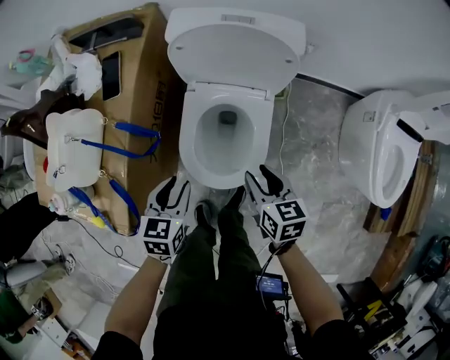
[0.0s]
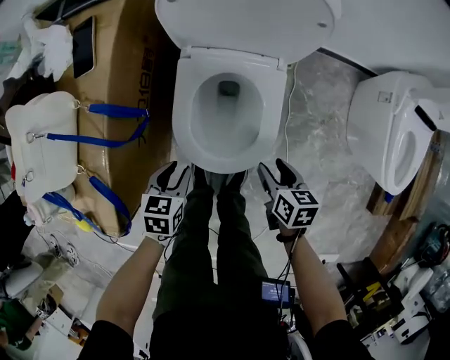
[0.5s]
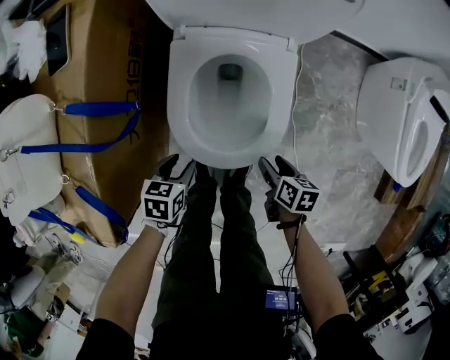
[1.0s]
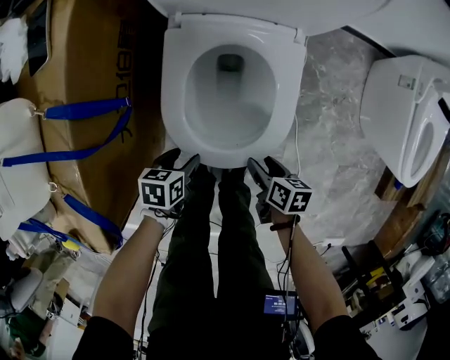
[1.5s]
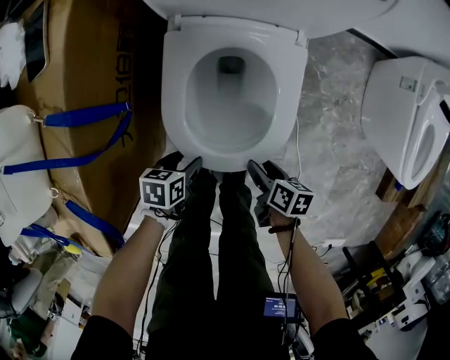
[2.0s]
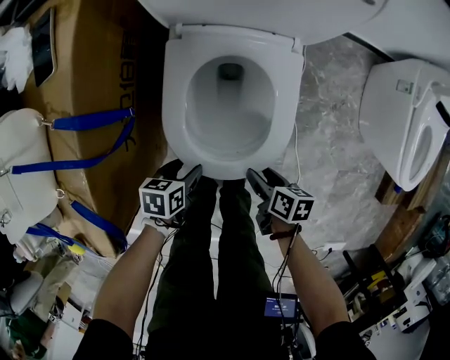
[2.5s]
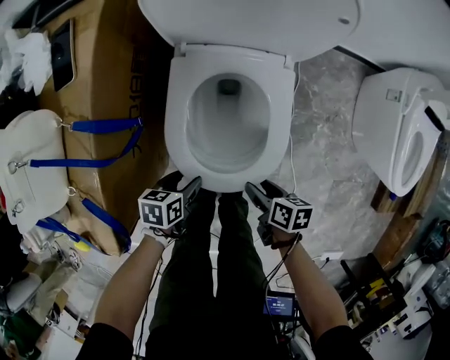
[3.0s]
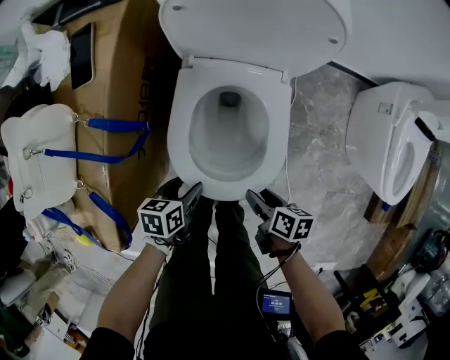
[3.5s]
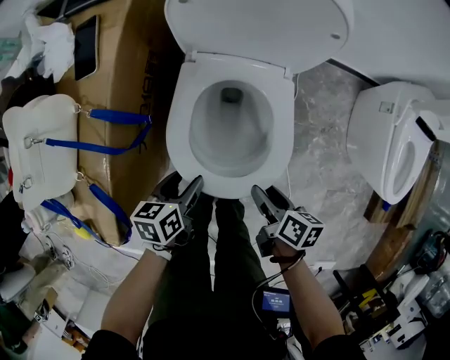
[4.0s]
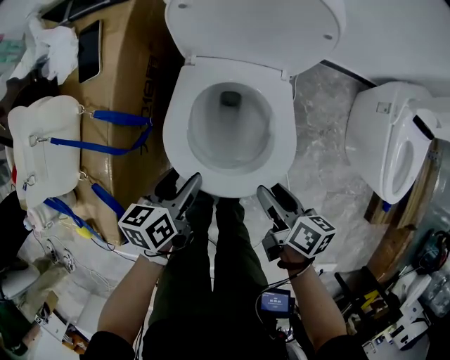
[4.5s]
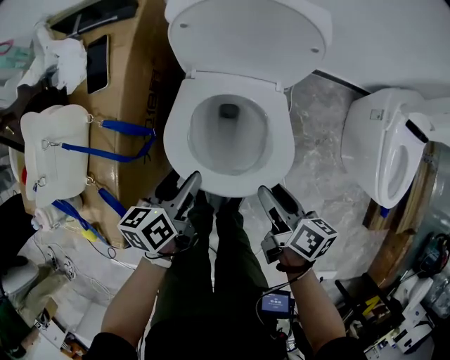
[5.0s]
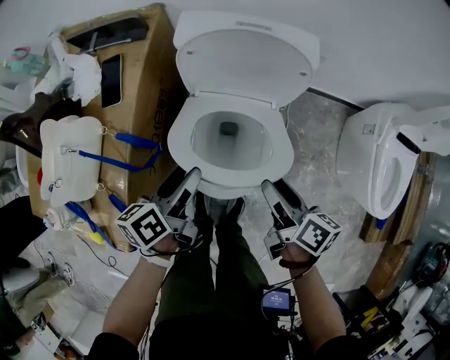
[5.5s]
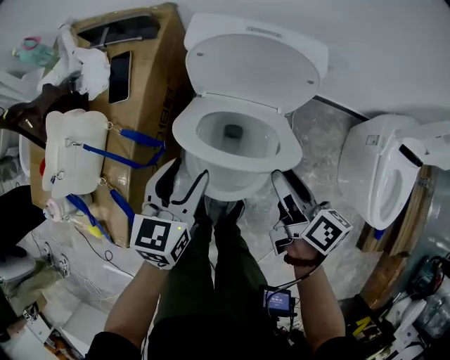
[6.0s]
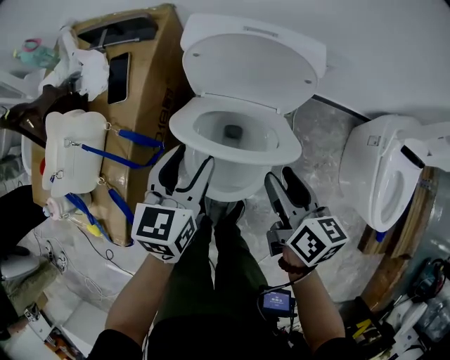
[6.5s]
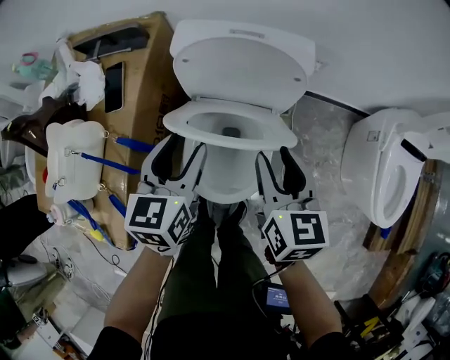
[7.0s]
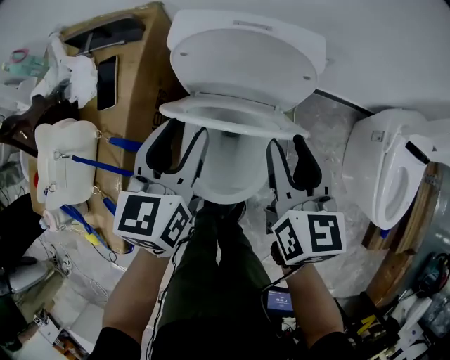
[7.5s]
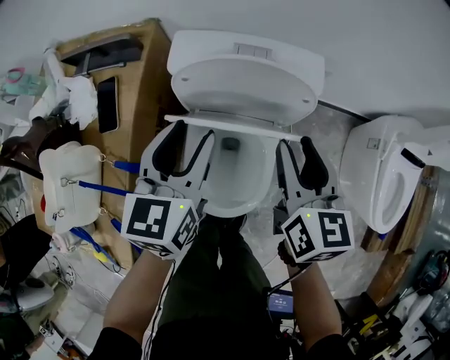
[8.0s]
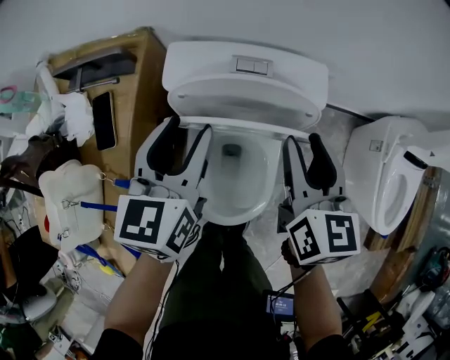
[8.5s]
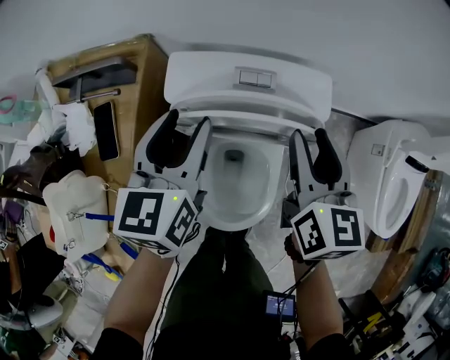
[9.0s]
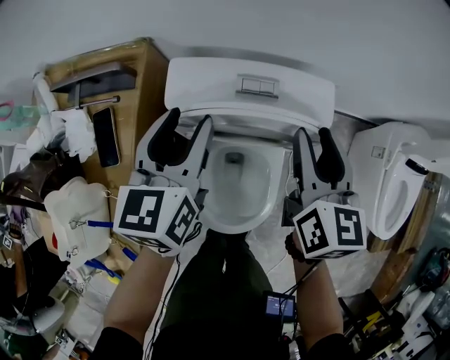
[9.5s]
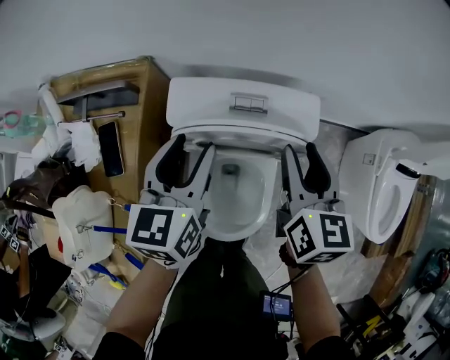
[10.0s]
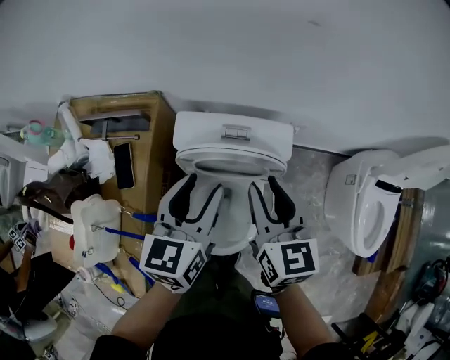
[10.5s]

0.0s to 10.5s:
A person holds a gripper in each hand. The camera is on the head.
0.0s to 2.0s: Both grippers travel together downward, some 30 cm. The left gripper turns by approximately 40 degrees, and opens up. The right gripper swivels some 40 degrees, and opens its fingers.
2.0s to 4.0s: Both grippers travel together upward, about 15 cm. The left gripper turns by roughly 20 degrees.
4.0s to 6.5s: Both grippers move upward and forward, approximately 25 cm. The right gripper swivels roughly 30 degrees, while the left gripper turns by roughly 40 degrees.
6.5s to 8.5s: Both grippers travel together forward, approximately 15 cm. The right gripper swivels about 30 degrees.
8.5s to 10.5s: Both grippers move upward, approximately 10 cm.

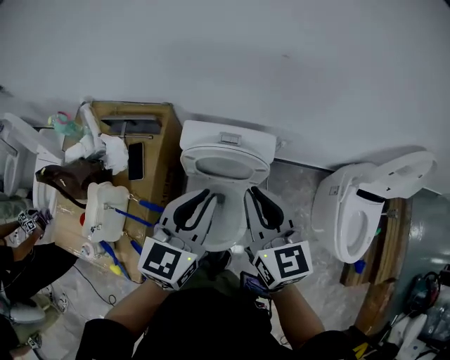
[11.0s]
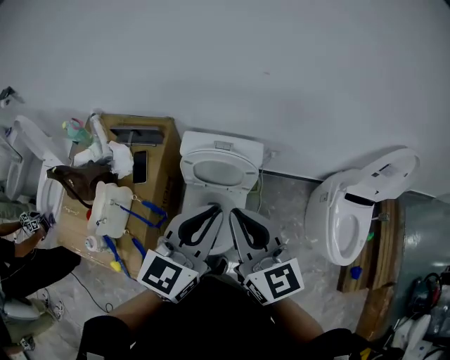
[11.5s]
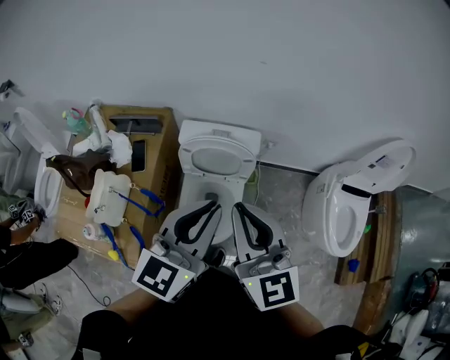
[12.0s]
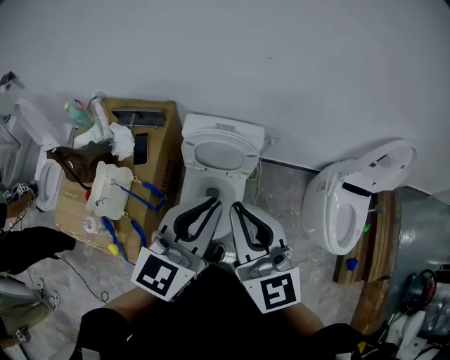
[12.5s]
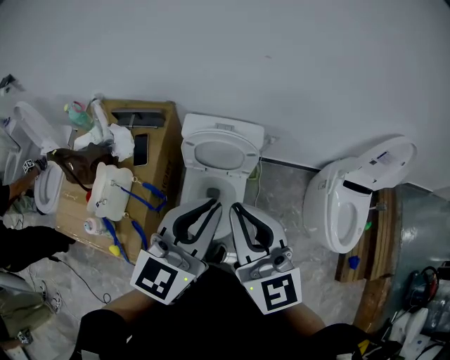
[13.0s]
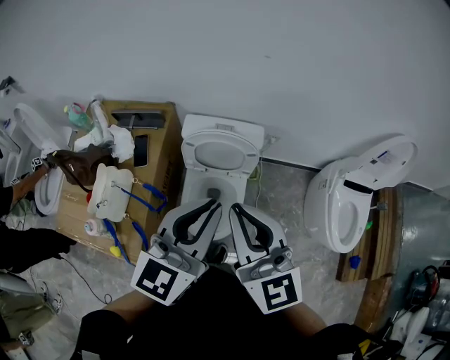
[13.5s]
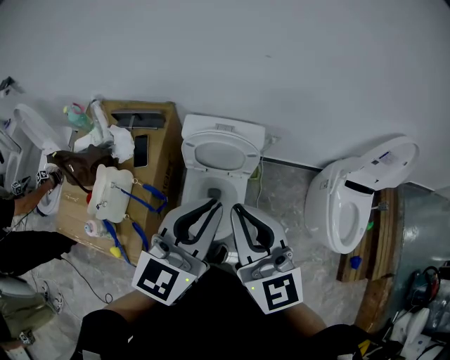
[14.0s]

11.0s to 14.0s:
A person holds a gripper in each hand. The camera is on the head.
11.0s to 12.5s: The two grippers go roughly 20 cm backward and upward.
12.5s to 14.0s: Both grippers stay about where they are.

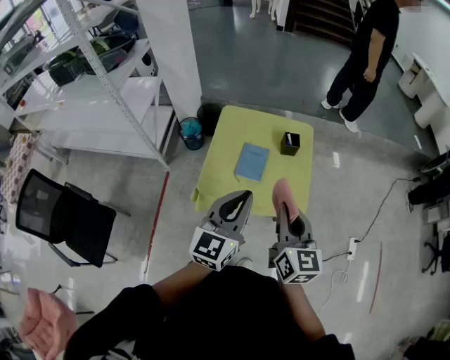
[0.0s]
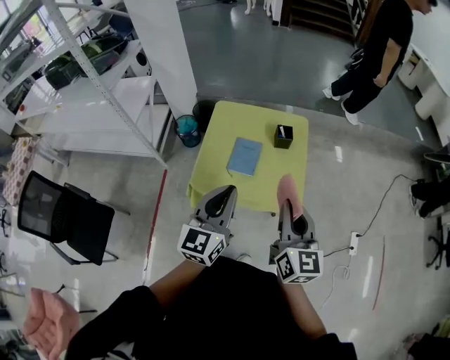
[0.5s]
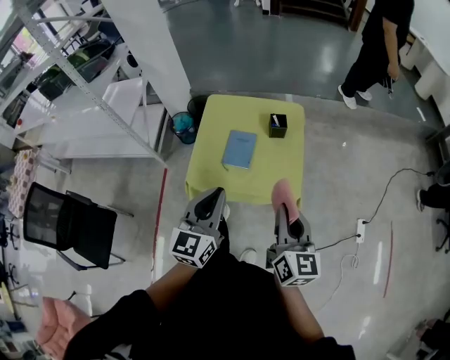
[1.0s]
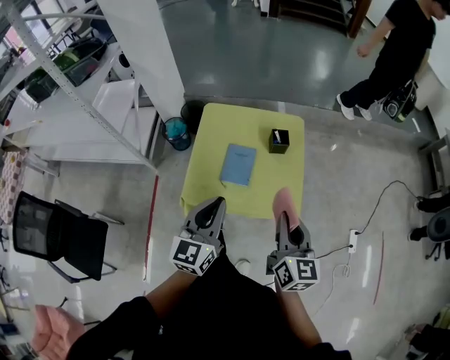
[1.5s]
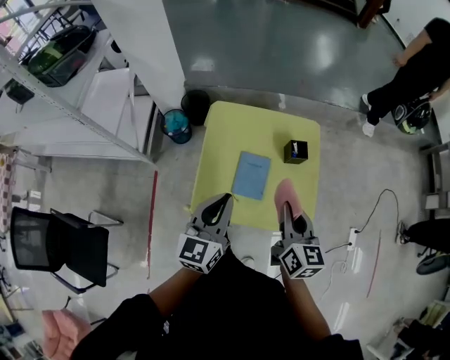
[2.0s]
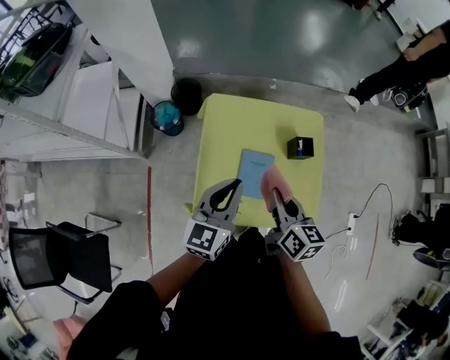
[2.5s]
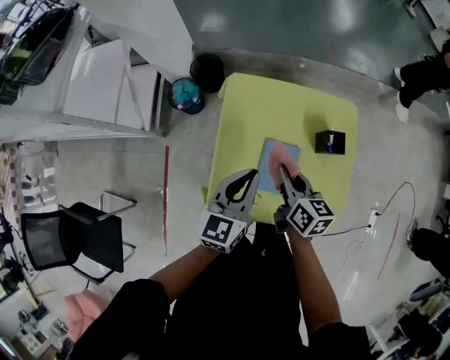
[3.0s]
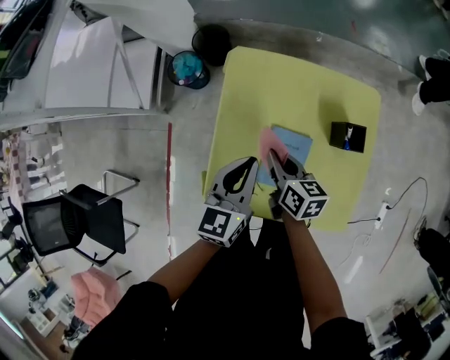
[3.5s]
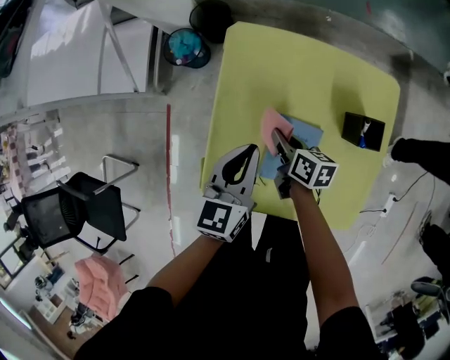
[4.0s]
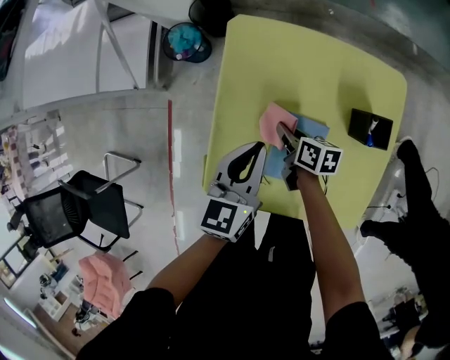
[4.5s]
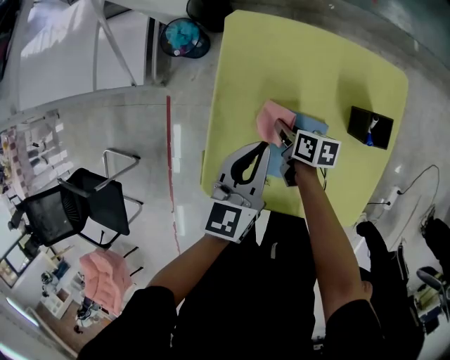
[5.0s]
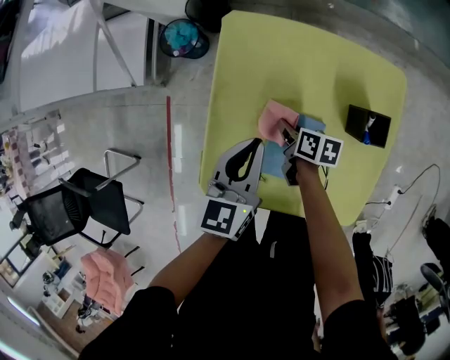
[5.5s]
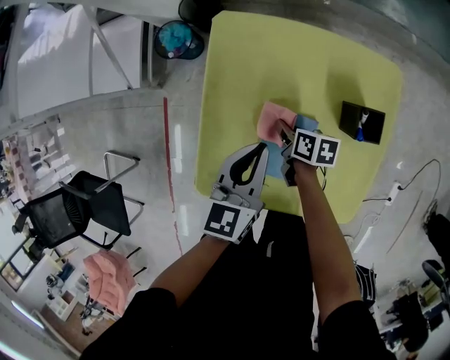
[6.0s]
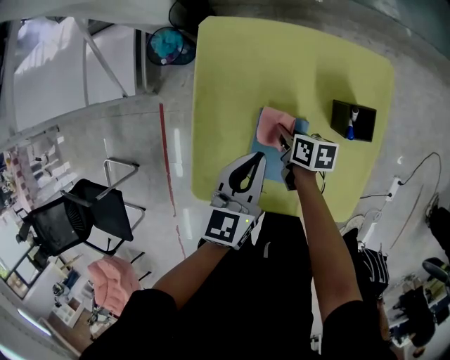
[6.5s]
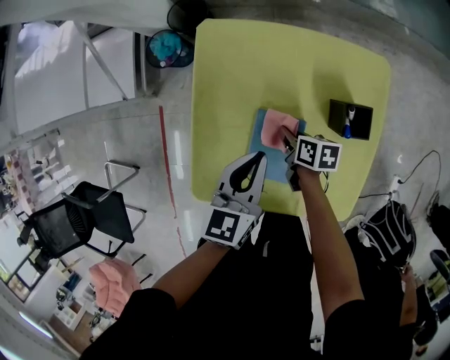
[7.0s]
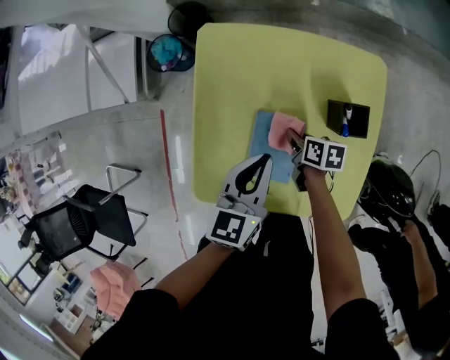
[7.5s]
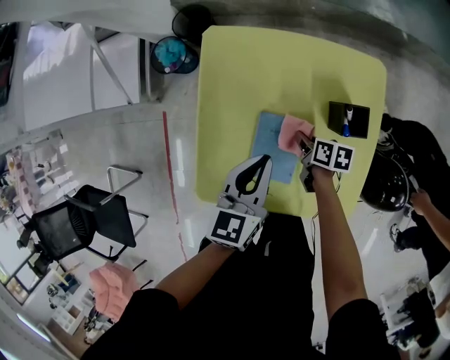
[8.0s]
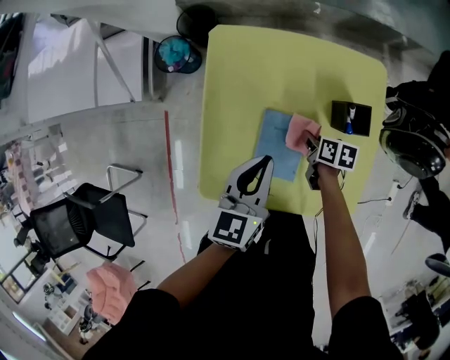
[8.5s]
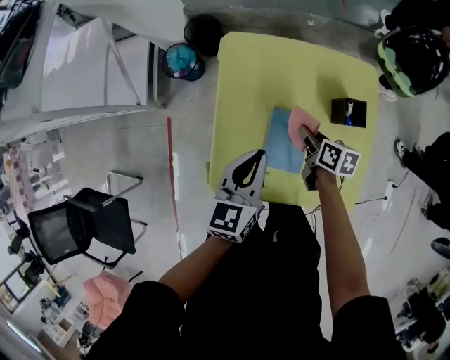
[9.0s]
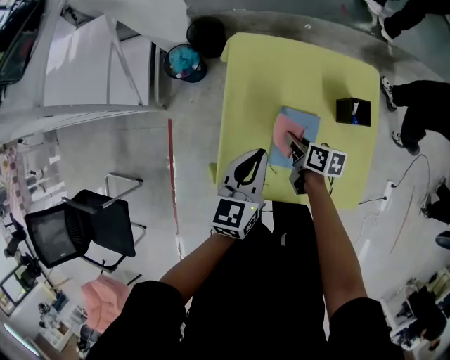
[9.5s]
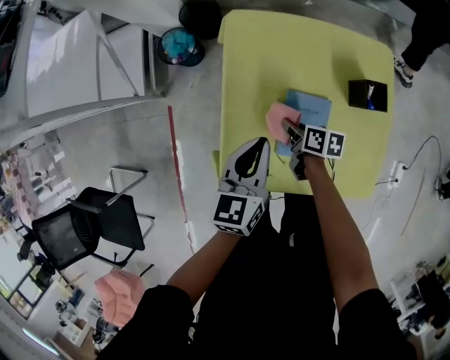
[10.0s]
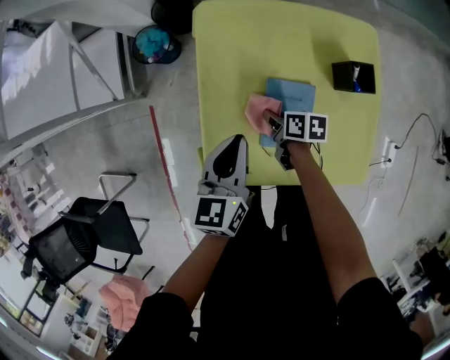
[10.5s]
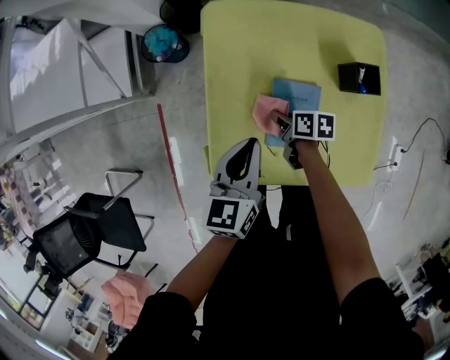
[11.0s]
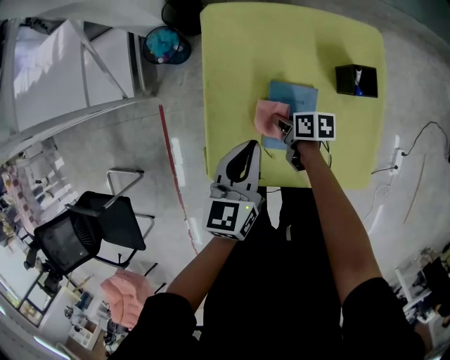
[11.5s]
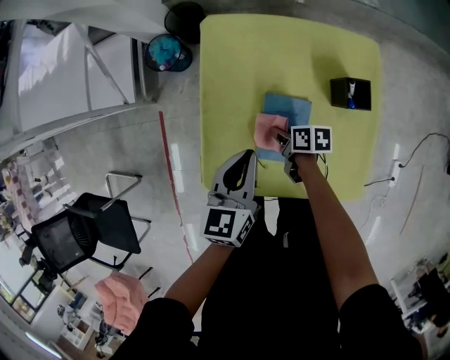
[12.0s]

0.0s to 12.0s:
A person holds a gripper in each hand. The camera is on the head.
0.0s to 2.0s: The left gripper travels forward, downward and to the left by roughly 25 cm; the right gripper heads forward and downward, covering approximately 25 cm.
2.0s to 4.0s: The grippers both shift downward and forward by about 40 cm. The right gripper rotates about 40 degrees.
4.0s to 6.0s: The right gripper heads downward, covering approximately 5 cm.
6.0s to 8.0s: The right gripper shifts some 10 cm to the right.
8.0s to 10.0s: Both grippers move to the left, approximately 15 cm.
10.0s to 12.0s: There are only small adjustments of the grippers.

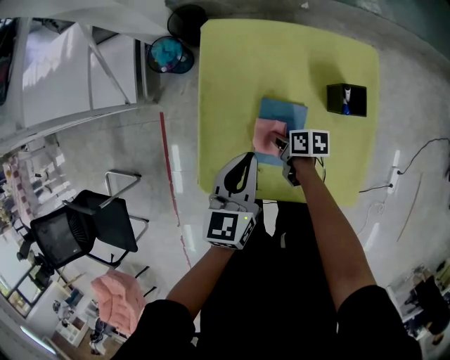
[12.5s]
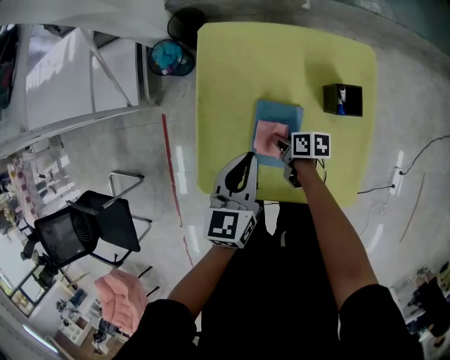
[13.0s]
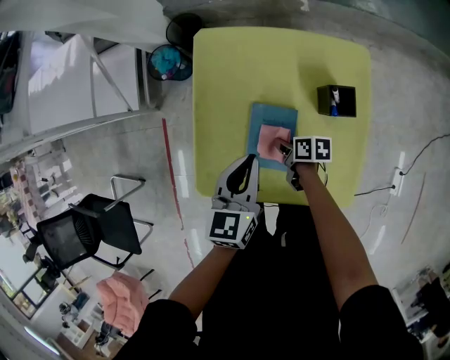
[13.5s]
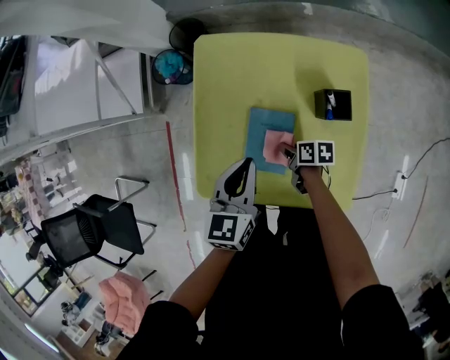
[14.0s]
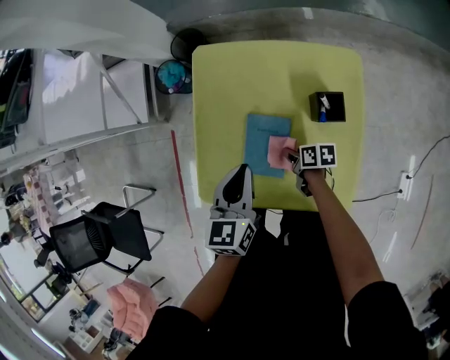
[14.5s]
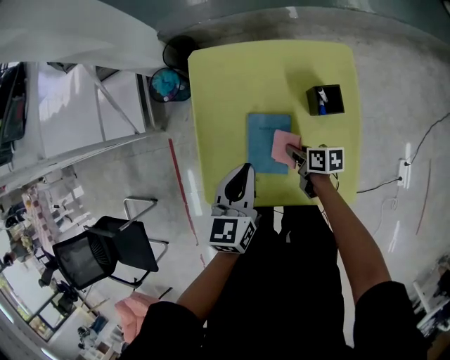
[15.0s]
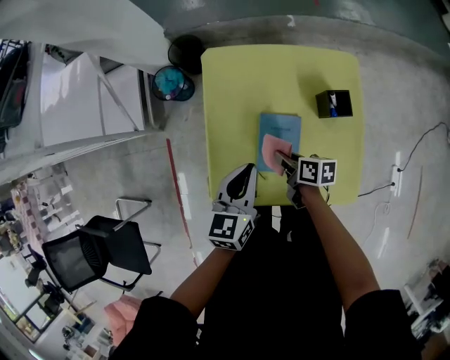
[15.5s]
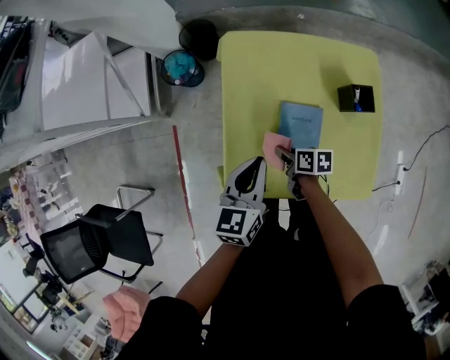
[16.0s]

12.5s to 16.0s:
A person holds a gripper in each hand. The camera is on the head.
12.5s to 14.5s: The left gripper shifts by some 5 cm; the right gripper goes about 10 cm to the right and backward.
14.5s to 16.0s: The grippers both shift to the left by some 15 cm.
